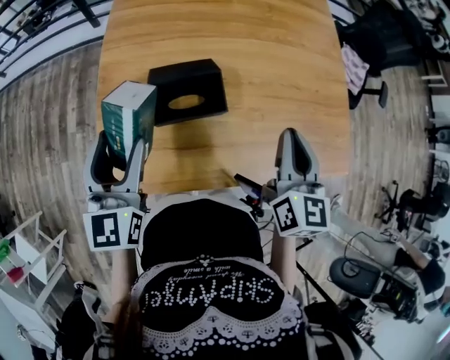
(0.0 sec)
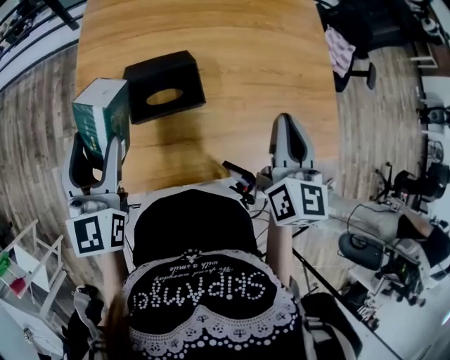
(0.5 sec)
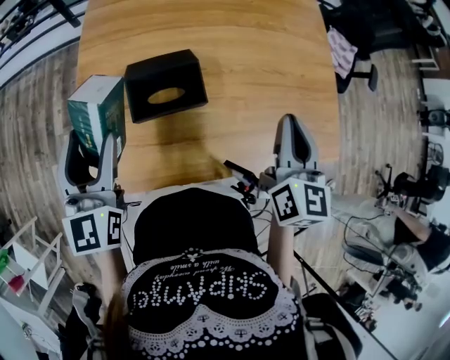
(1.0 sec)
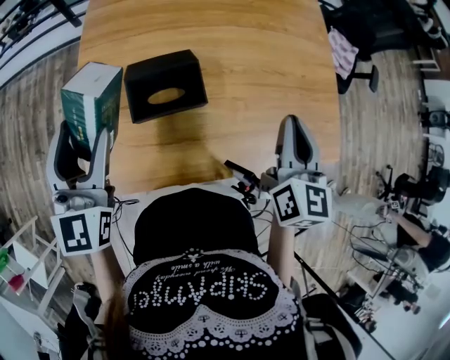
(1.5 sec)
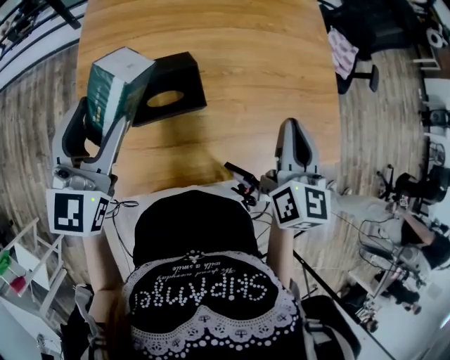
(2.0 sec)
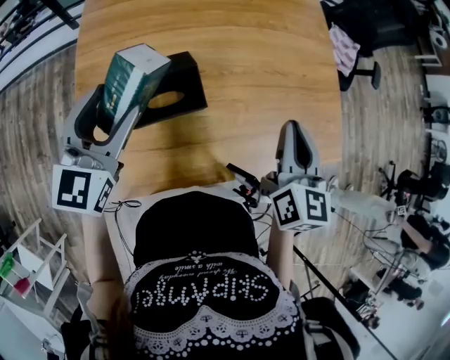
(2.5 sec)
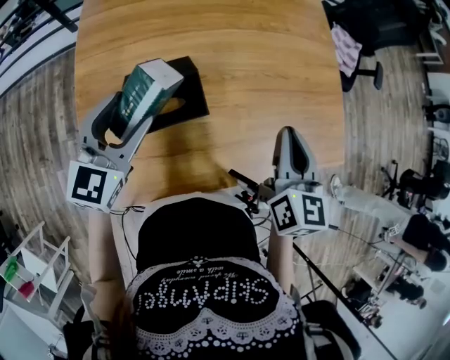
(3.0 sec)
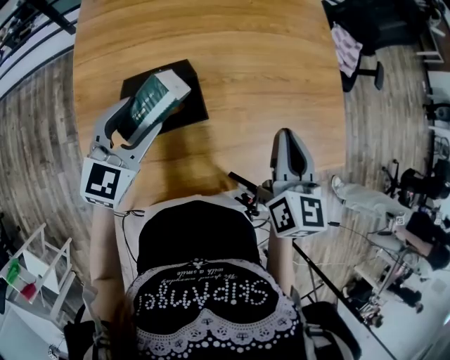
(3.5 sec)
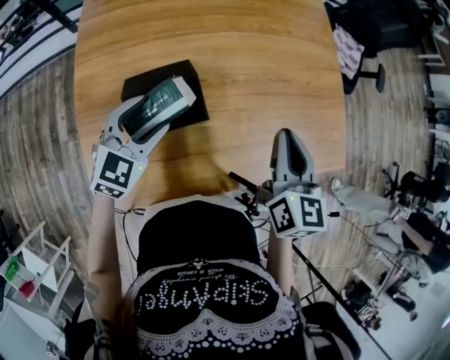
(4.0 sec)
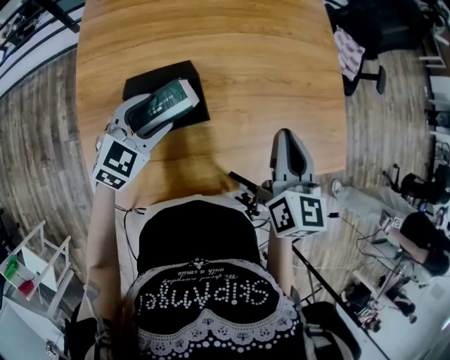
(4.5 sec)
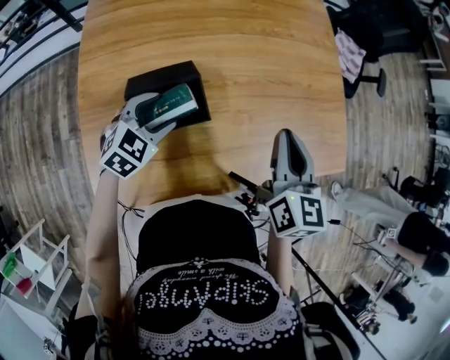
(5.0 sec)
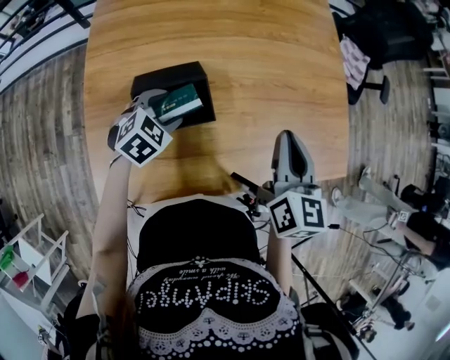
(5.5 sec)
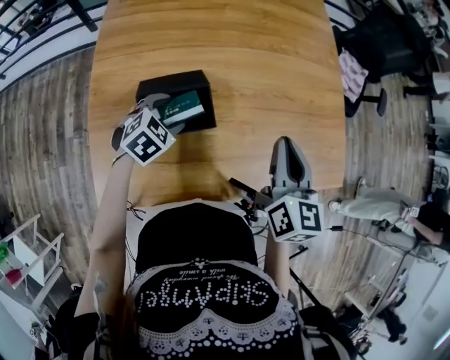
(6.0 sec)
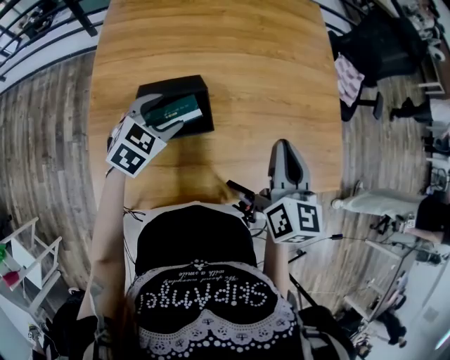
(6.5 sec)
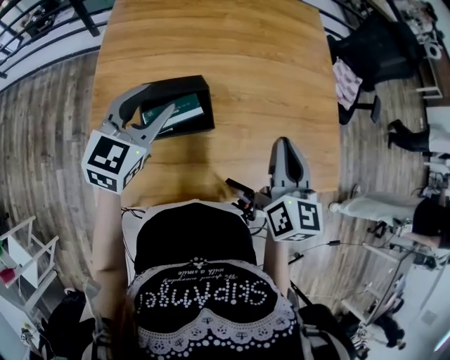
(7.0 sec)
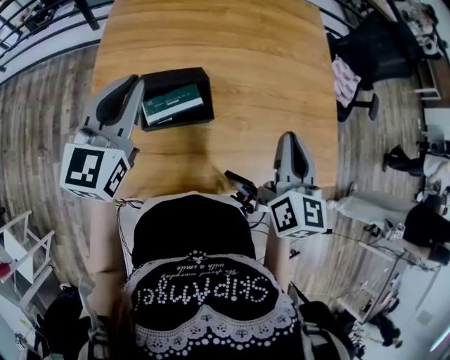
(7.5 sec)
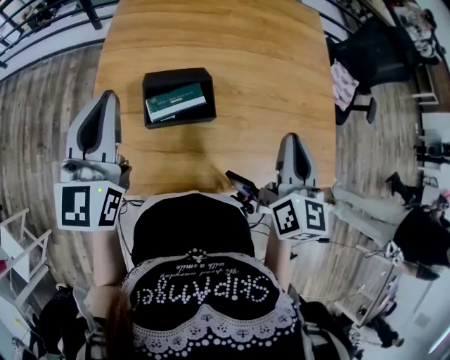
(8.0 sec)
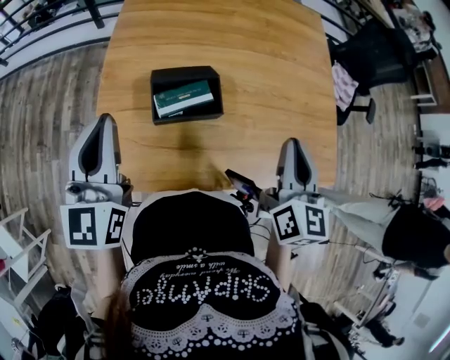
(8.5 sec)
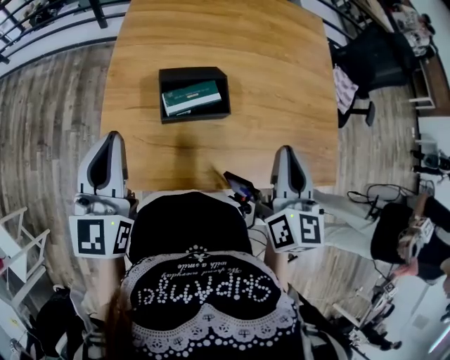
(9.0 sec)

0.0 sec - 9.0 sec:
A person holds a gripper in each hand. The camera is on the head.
0.0 sec - 2.0 sec: The left gripper is displaced forward by approximately 5 cm.
2.0 sec - 4.5 sec: The left gripper goes some 15 cm downward and to the right, and turns by about 40 degrees.
4.5 sec - 7.0 sec: The left gripper is displaced upward by some 10 cm, and changes its angle by about 20 degrees.
7.0 sec - 9.0 sec: The right gripper heads backward, covering roughly 5 cm. Meanwhile the left gripper travels backward, to the left and upward by about 20 cm, changes its angle by roughly 30 degrees, and closes its fingers.

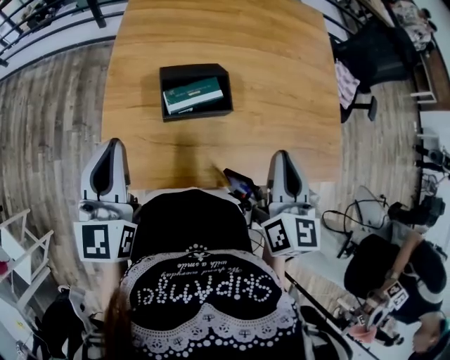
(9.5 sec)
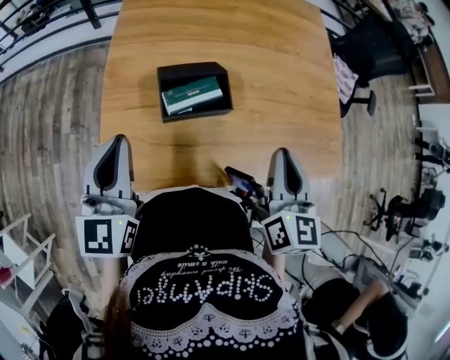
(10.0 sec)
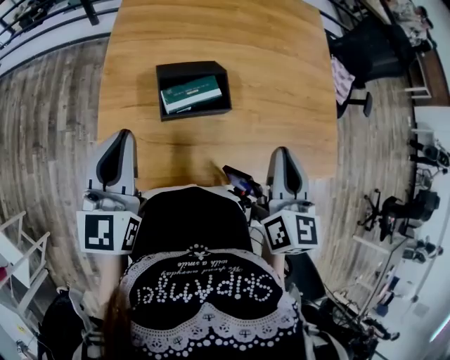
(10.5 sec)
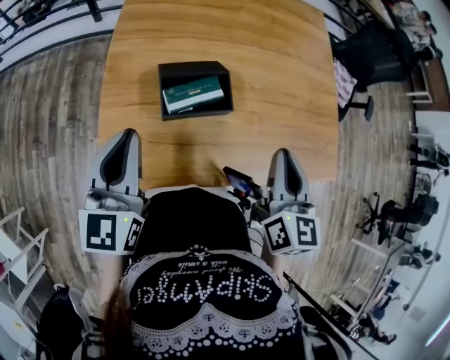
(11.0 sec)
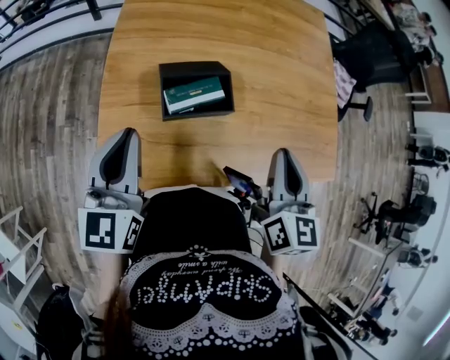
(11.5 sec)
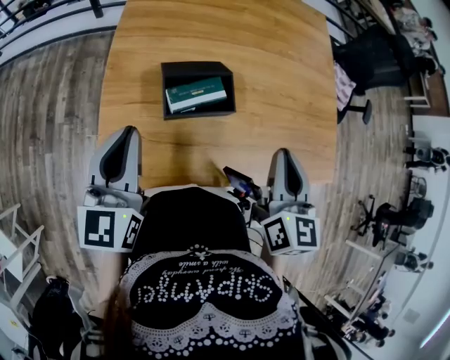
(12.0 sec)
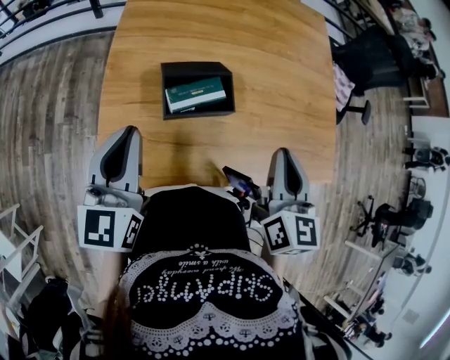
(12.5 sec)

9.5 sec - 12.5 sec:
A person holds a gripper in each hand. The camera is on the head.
9.5 sec - 11.0 sec: The grippers move only a little.
11.0 sec - 12.5 sec: Both grippers stay about where they are.

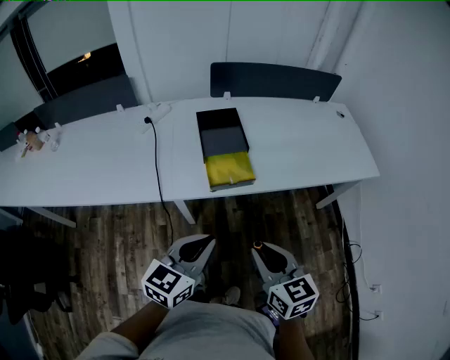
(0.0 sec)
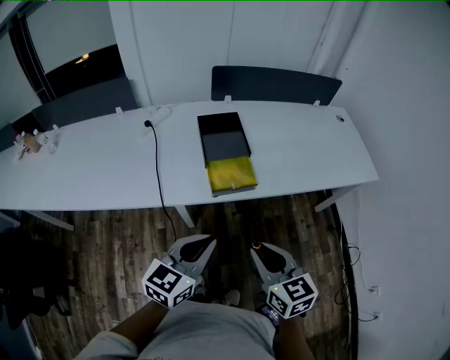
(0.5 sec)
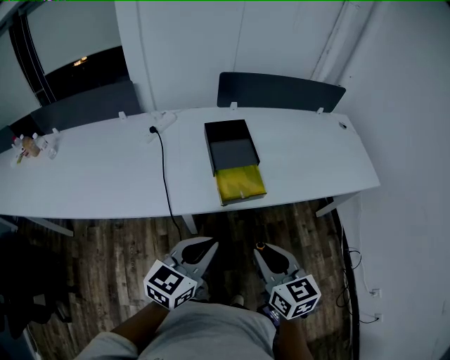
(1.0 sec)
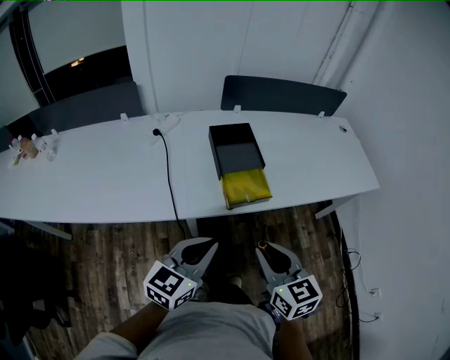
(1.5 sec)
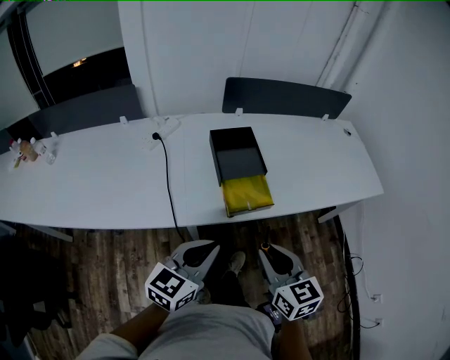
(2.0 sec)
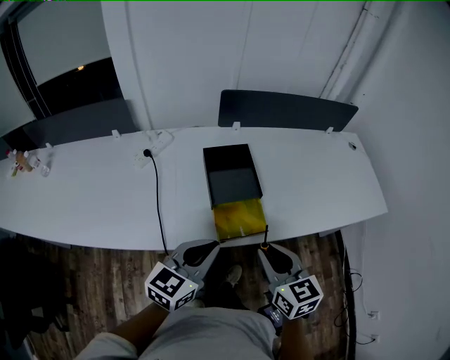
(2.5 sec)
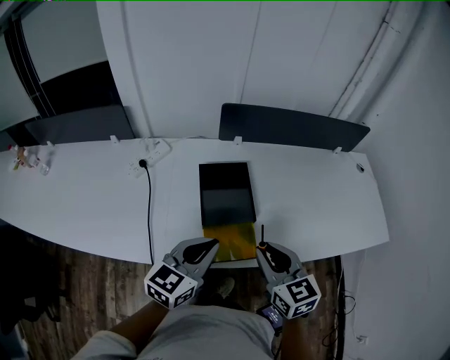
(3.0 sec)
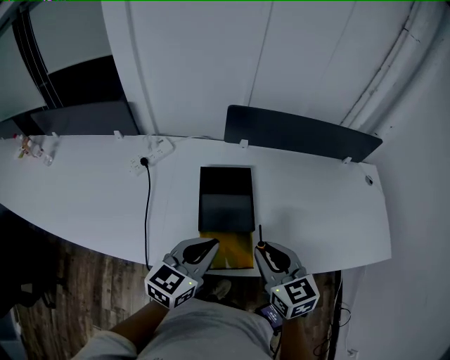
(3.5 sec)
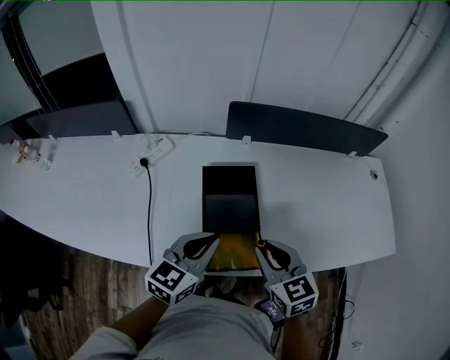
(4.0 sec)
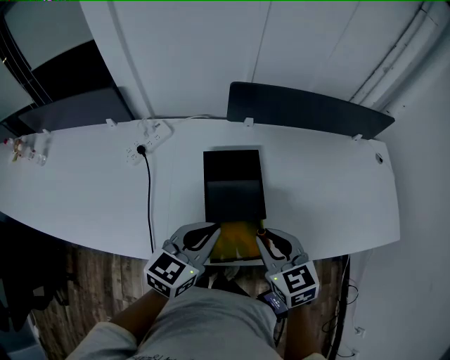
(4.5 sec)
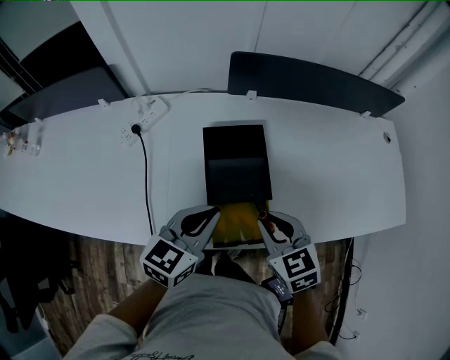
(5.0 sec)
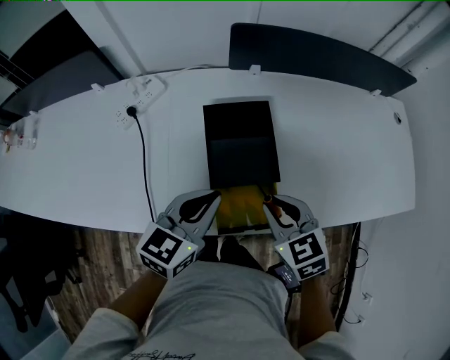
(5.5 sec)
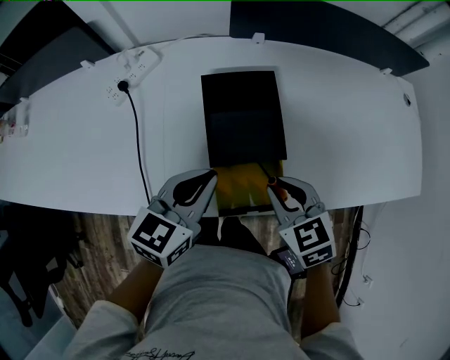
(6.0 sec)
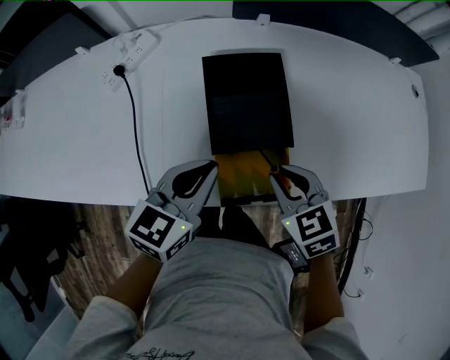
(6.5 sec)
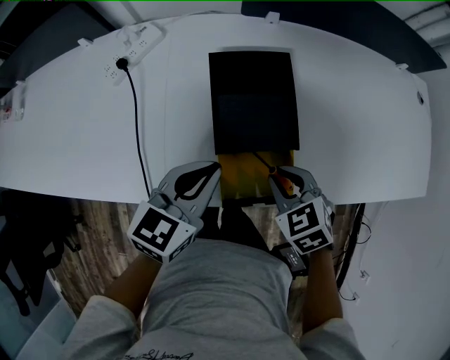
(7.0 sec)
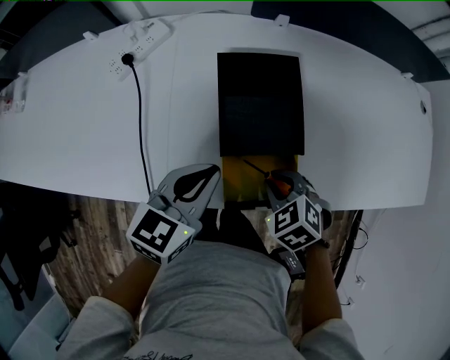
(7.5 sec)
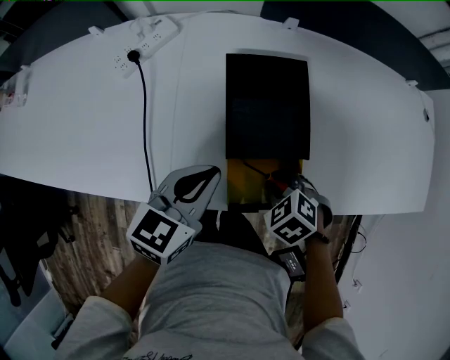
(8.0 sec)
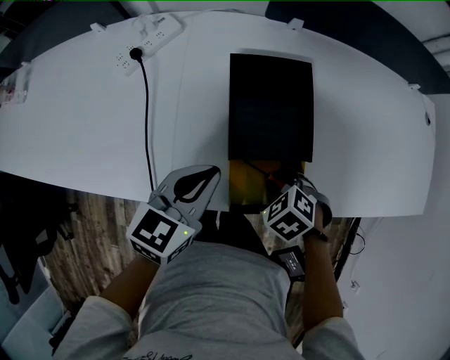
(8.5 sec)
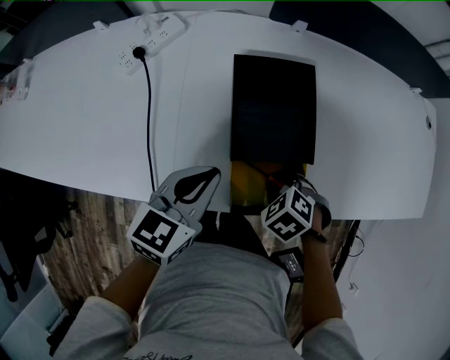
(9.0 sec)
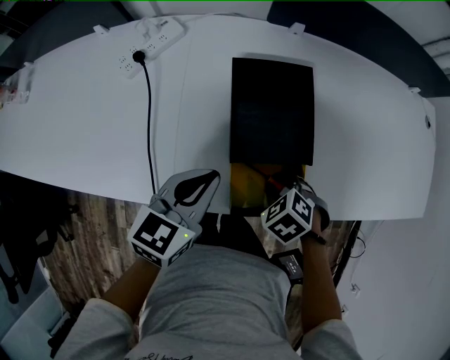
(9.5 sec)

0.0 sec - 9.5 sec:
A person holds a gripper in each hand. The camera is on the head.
0.0 sec - 2.0 sec: The left gripper travels to the left and forward by roughly 10 cm. The right gripper moves forward and to the left, some 10 cm.
2.0 sec - 4.0 sec: The two grippers go approximately 25 cm forward.
4.0 sec - 5.5 sec: The two grippers go some 5 cm downward.
5.5 sec - 7.5 sec: The right gripper is displaced downward by some 15 cm, and rotates some 30 degrees, while the left gripper shifts about 5 cm downward.
7.5 sec - 9.5 sec: The grippers make only small movements.

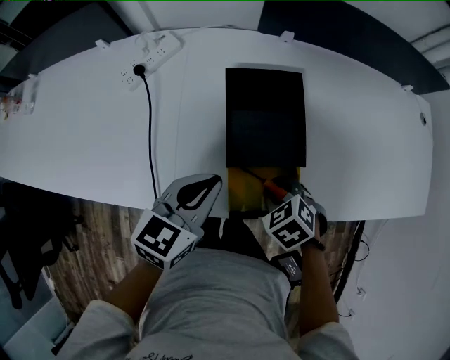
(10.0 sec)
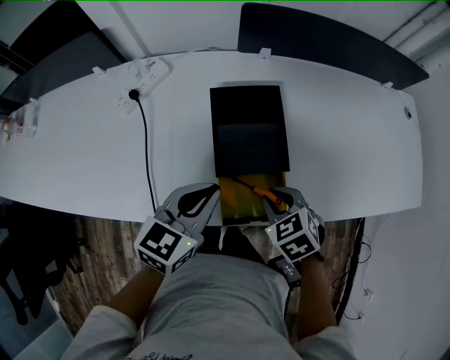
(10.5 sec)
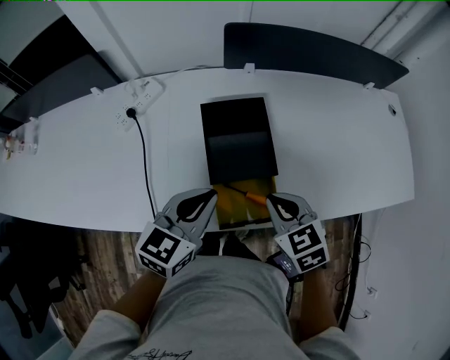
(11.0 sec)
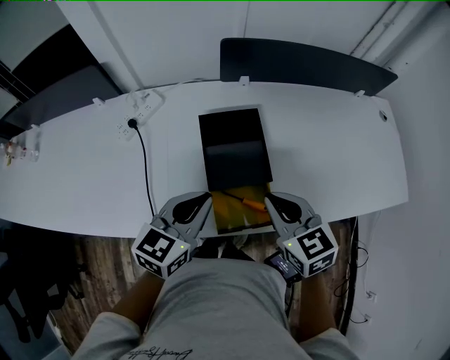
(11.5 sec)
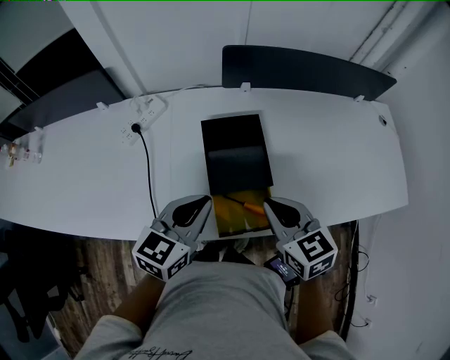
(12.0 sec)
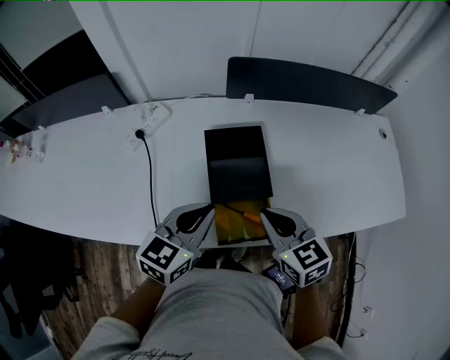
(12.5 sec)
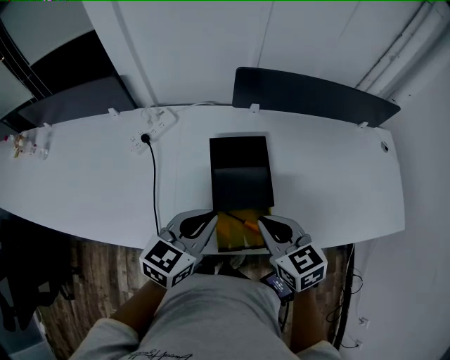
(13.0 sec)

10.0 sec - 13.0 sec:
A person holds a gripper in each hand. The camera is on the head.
10.0 sec - 11.5 sec: The right gripper travels upward by about 20 cm, tips its fingers upward by some 40 degrees, and closes up; the left gripper heads upward, covering roughly 10 cm.
11.5 sec - 13.0 sec: The grippers stay close to where they were, moving slightly.

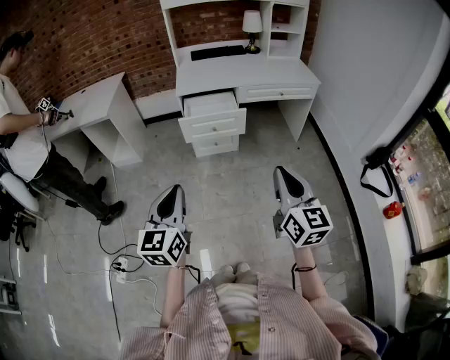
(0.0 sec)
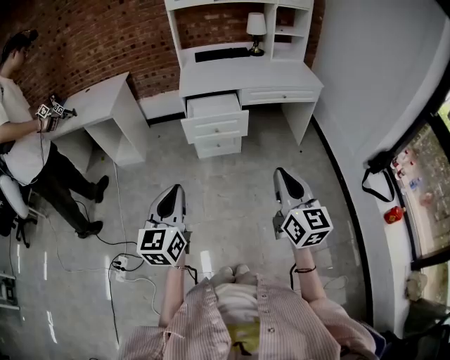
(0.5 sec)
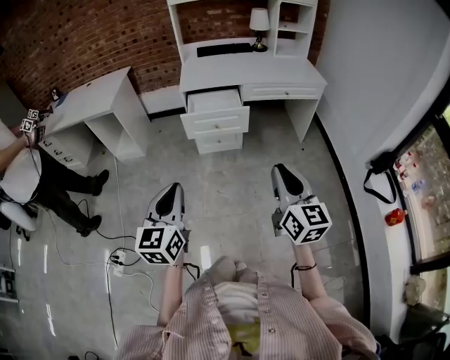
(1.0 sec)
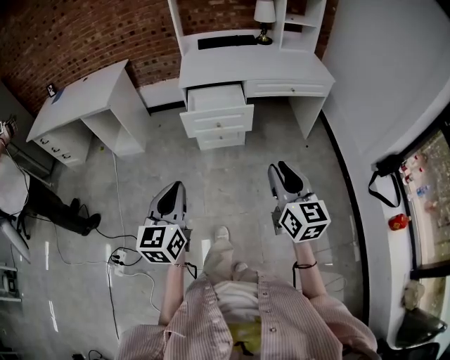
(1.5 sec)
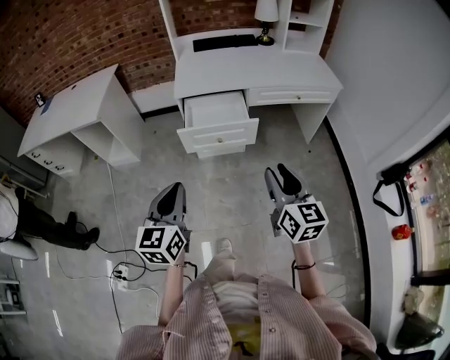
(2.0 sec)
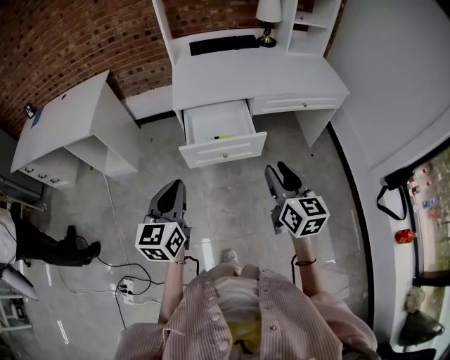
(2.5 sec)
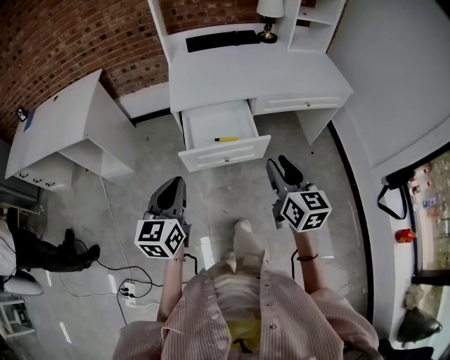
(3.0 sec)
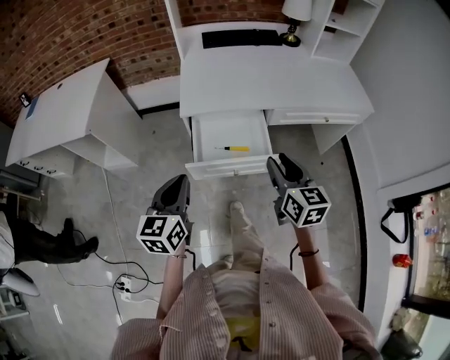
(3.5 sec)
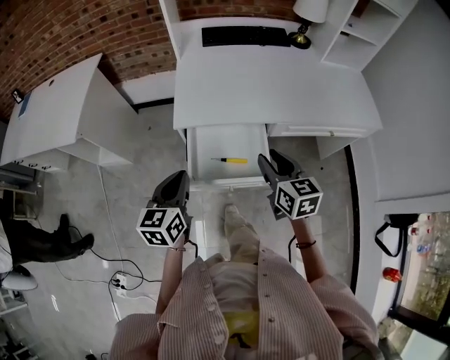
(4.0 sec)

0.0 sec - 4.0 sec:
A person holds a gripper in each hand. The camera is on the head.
0.0 sec - 2.0 sec: The grippers both shift forward by about 20 cm. The right gripper opens up.
2.0 sec - 4.0 sec: The two grippers go about 40 cm forward.
